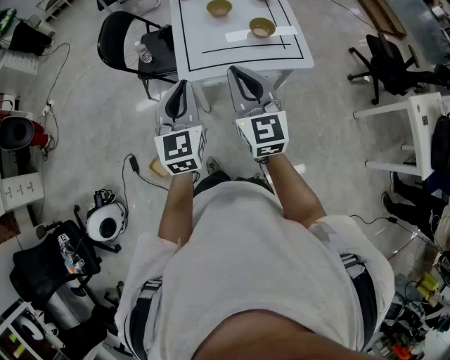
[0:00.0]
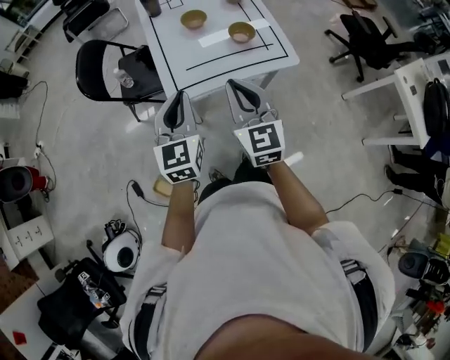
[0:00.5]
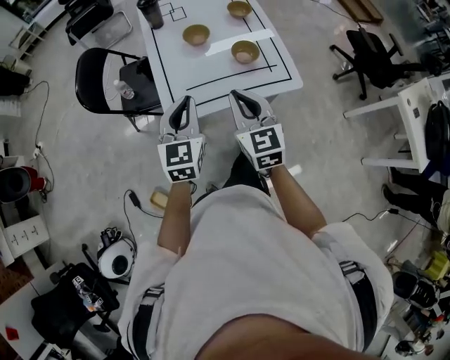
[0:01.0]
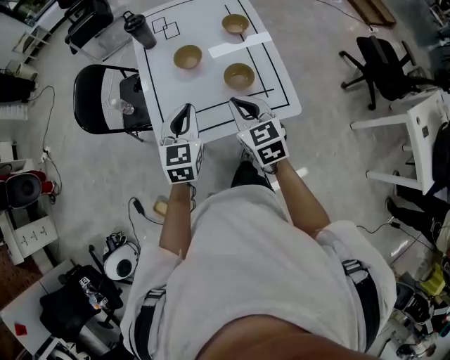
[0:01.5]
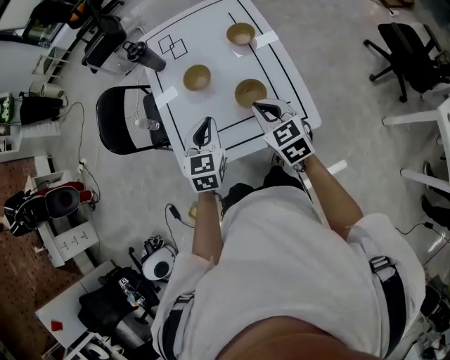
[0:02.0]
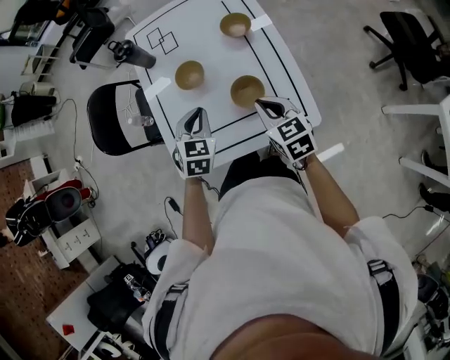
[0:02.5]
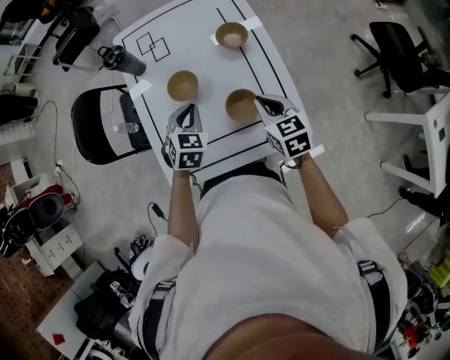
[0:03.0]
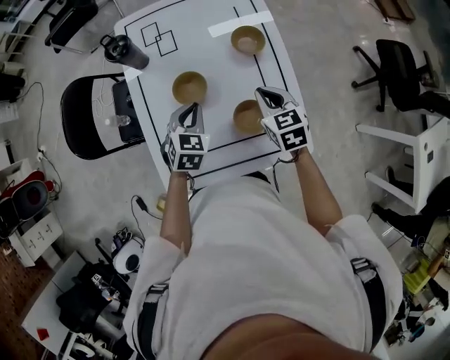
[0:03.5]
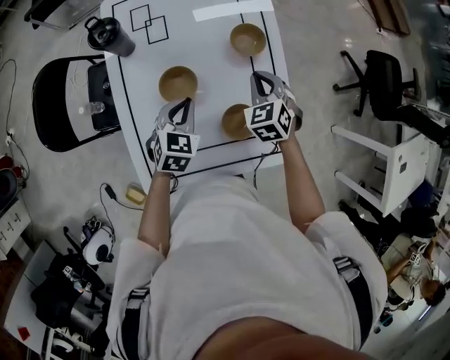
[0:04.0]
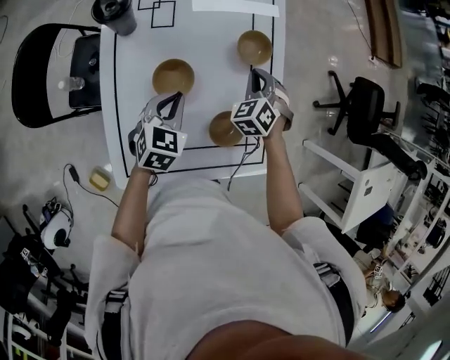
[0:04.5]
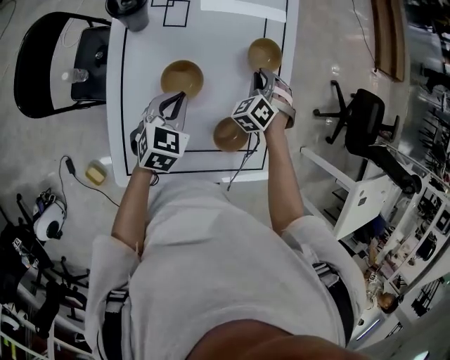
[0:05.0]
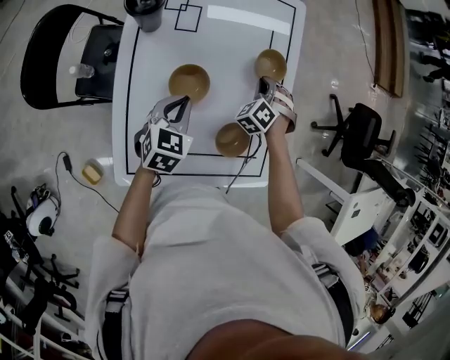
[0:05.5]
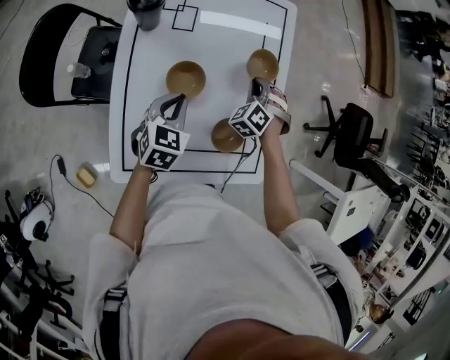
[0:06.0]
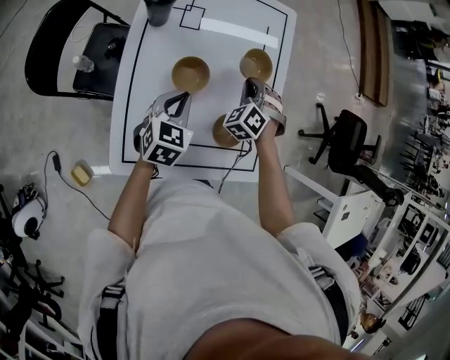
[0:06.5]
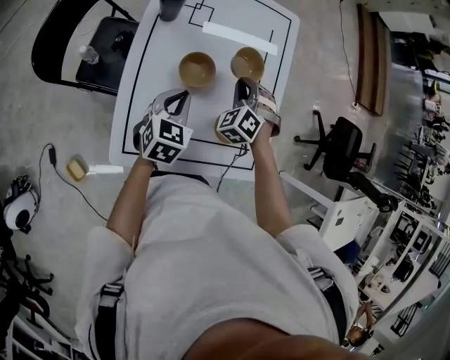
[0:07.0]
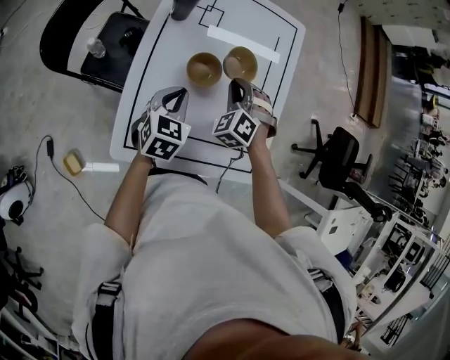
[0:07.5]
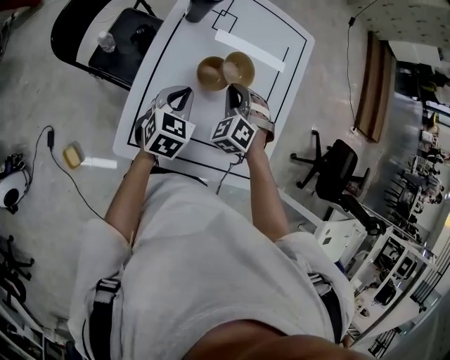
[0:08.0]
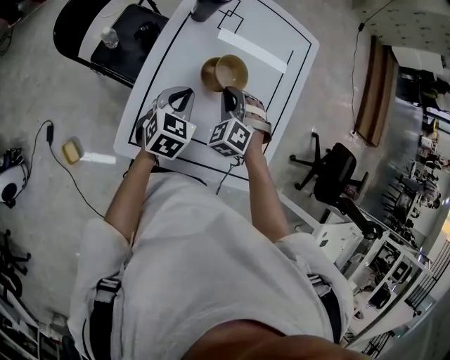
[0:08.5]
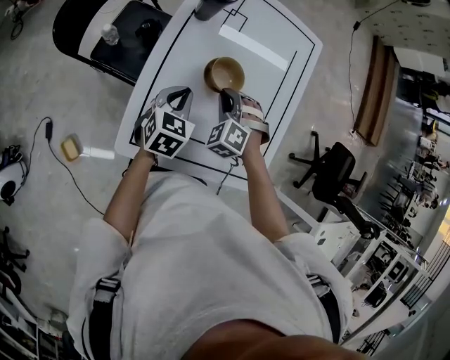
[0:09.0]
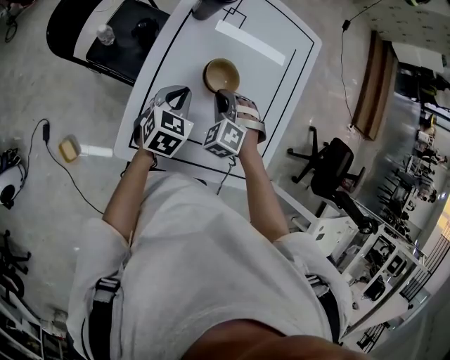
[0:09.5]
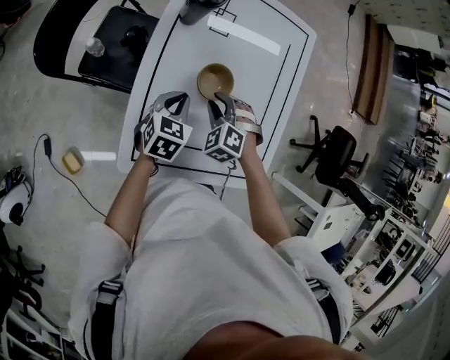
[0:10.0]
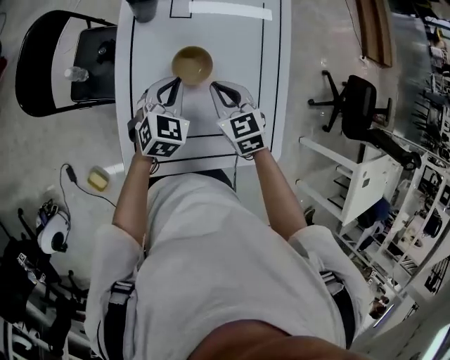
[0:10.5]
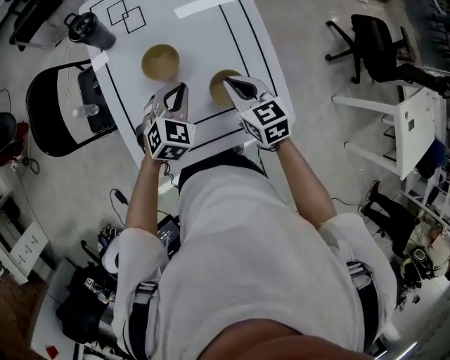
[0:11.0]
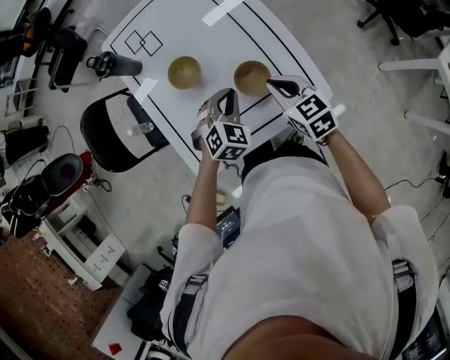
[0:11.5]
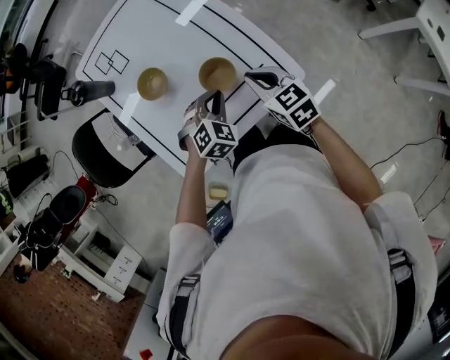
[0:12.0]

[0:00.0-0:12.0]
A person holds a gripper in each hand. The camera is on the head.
0:00.0 to 0:02.0: The right gripper heads forward, to the right and downward, covering roughly 40 cm, and turns by some 30 degrees. The left gripper moves forward and to the right, about 35 cm, and changes its angle by roughly 20 degrees.
0:02.0 to 0:04.0: The left gripper shifts about 20 cm forward and downward. The right gripper is displaced forward by some 25 cm, and swivels about 30 degrees.
0:04.0 to 0:06.0: The right gripper is displaced downward by about 5 cm, and changes its angle by roughly 40 degrees.
0:06.0 to 0:08.0: The left gripper goes about 5 cm backward. The right gripper moves to the left, backward and upward, about 20 cm, and turns by roughly 20 degrees.
0:08.0 to 0:10.0: The left gripper moves about 5 cm; the right gripper heads downward, covering roughly 5 cm.
0:10.0 to 0:12.0: The two grippers go roughly 30 cm to the right and backward. The left gripper twists approximately 60 degrees clockwise, seen from behind; the right gripper twists some 80 degrees clockwise, seen from behind, and closes.

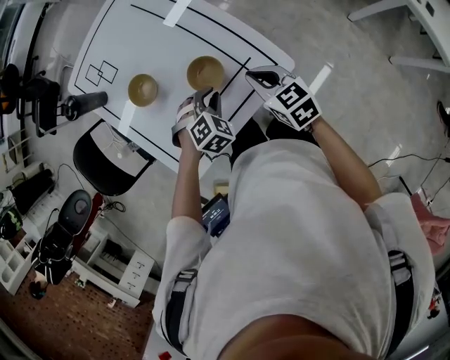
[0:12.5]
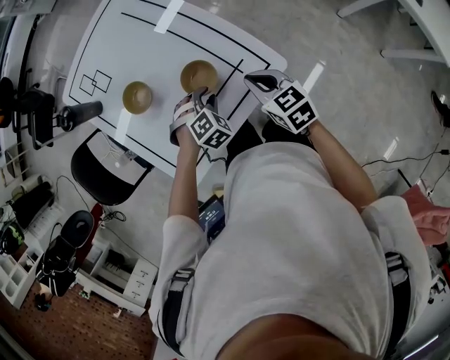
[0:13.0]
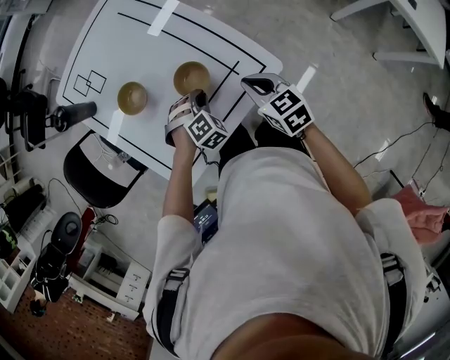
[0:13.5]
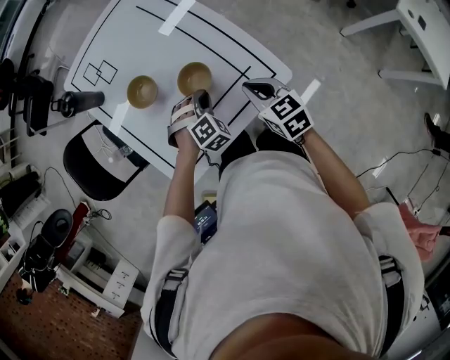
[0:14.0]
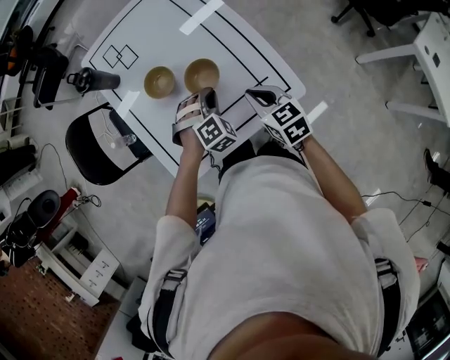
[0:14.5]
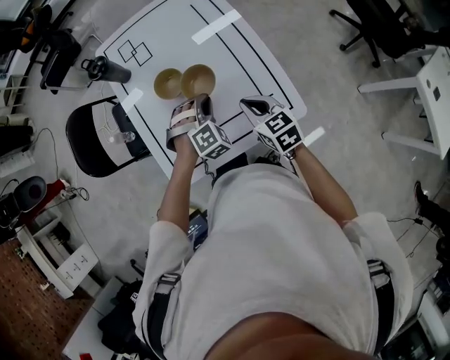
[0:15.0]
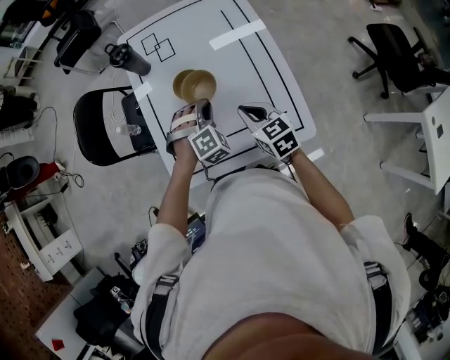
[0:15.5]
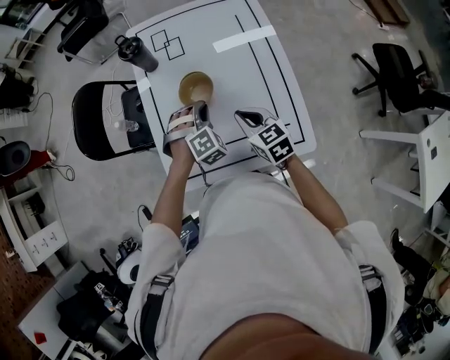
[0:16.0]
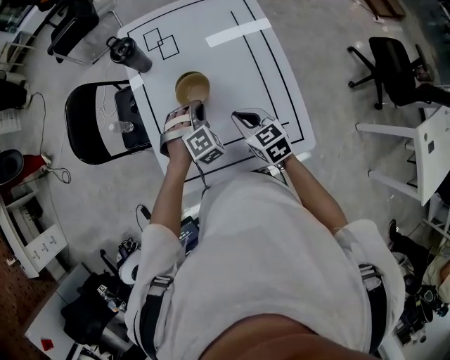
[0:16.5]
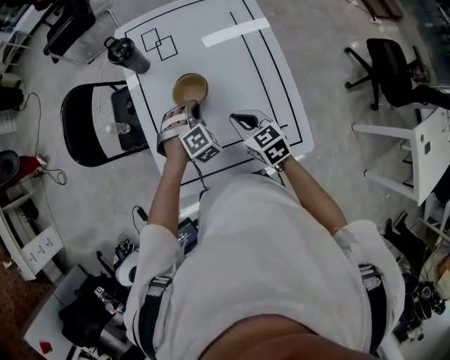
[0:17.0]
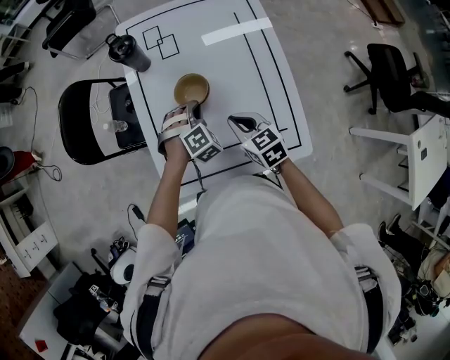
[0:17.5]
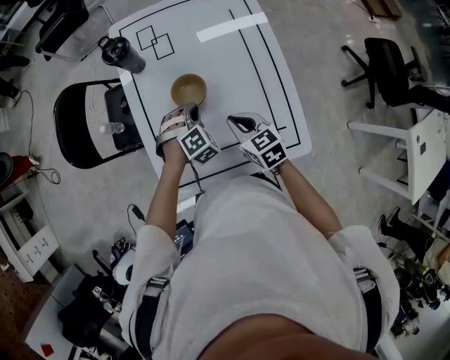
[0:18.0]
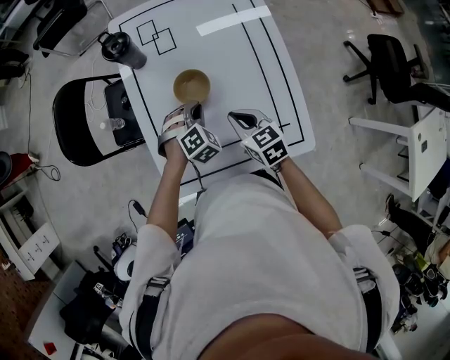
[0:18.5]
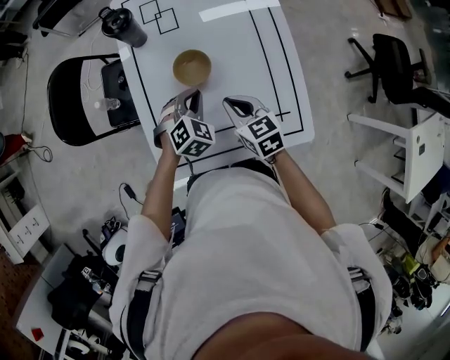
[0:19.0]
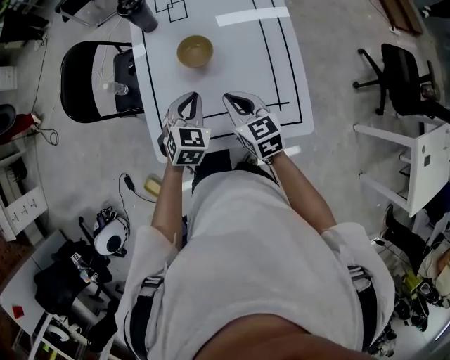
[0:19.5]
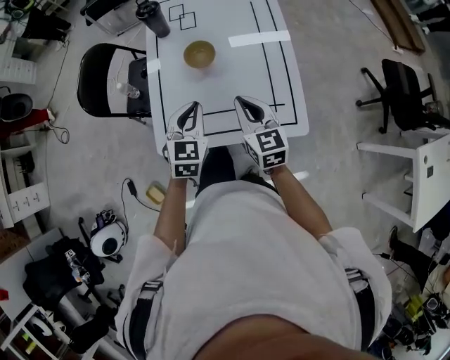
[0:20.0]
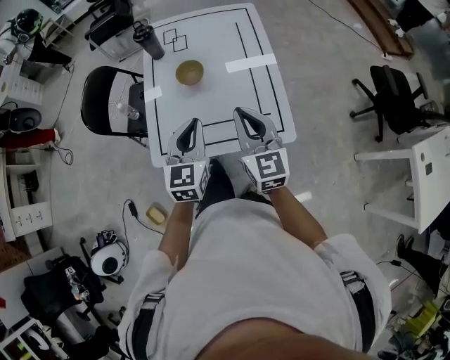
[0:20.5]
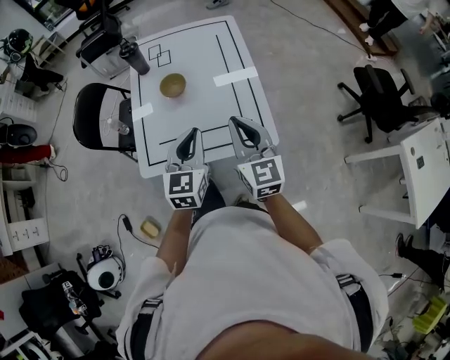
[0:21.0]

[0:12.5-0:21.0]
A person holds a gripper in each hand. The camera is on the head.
0:12.5 to 0:14.5: The left gripper ends up approximately 5 cm from where it was. The right gripper is displaced to the left by roughly 5 cm.
0:14.5 to 0:16.5: The right gripper travels forward and to the left by some 15 cm, while the left gripper is displaced to the left and forward by approximately 15 cm.
0:16.5 to 0:19.0: The left gripper turns by about 30 degrees.
0:19.0 to 0:21.0: The left gripper moves backward and upward, some 35 cm, and tilts its fingers some 40 degrees upward, while the right gripper travels backward, upward and to the right by approximately 35 cm, and tips its fingers upward by about 30 degrees.

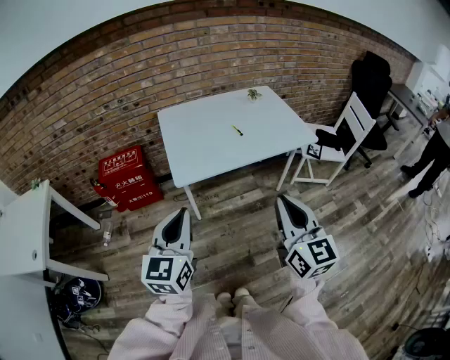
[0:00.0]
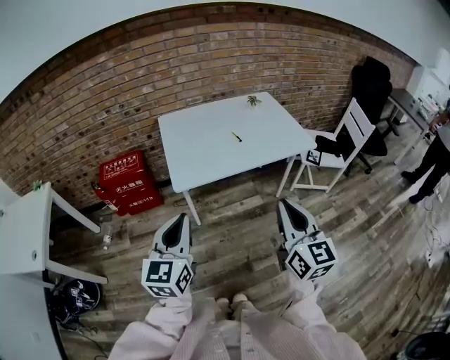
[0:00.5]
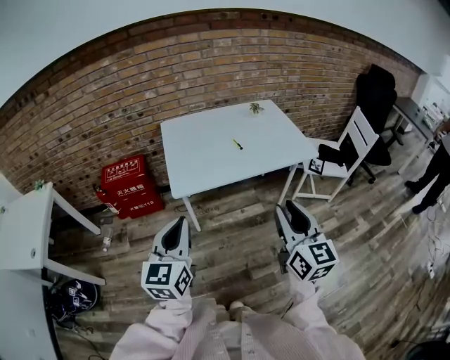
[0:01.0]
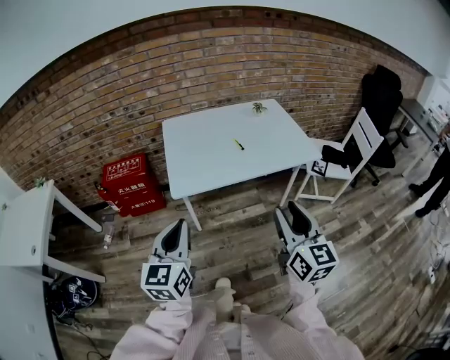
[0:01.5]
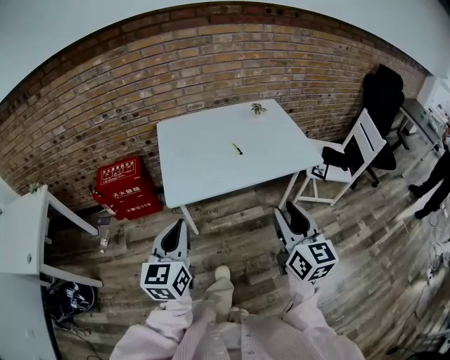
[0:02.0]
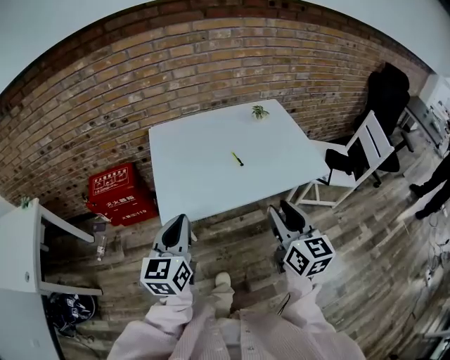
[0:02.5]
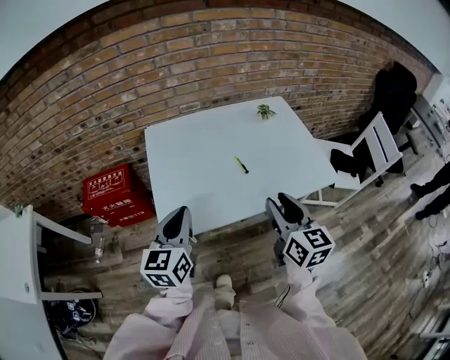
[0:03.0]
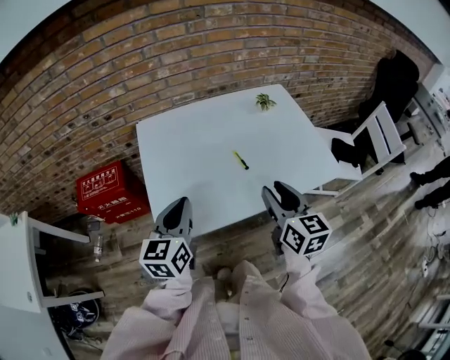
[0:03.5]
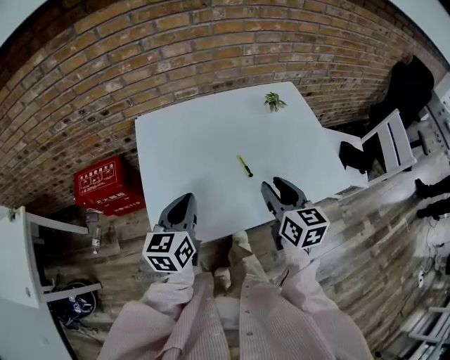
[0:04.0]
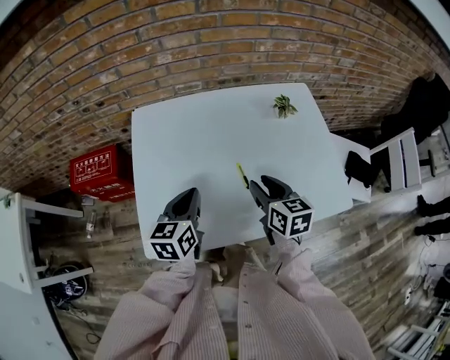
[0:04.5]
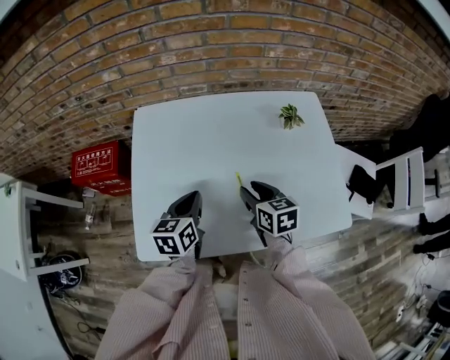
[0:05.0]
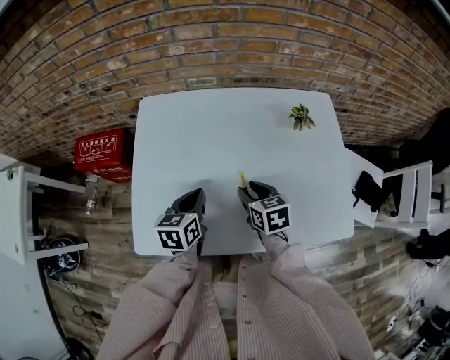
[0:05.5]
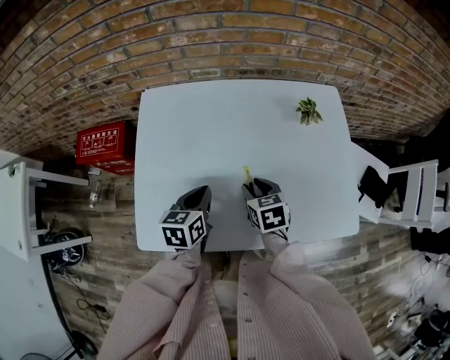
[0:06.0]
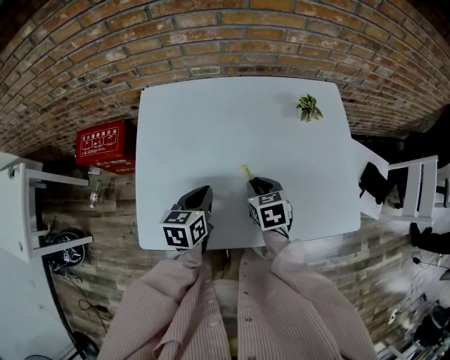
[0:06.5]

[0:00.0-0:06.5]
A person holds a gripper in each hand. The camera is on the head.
0:00.0 to 0:02.0: The right gripper is displaced forward and to the right by about 10 cm, and opens its fingers; the left gripper is displaced forward by some 5 cm.
0:02.0 to 0:04.5: The two grippers go approximately 40 cm forward. The left gripper turns by roughly 20 degrees, while the right gripper changes its angle by some 30 degrees.
0:04.5 to 0:06.5: Both grippers move downward, some 10 cm. The right gripper swivels some 30 degrees.
